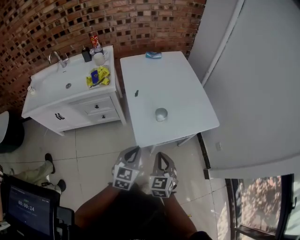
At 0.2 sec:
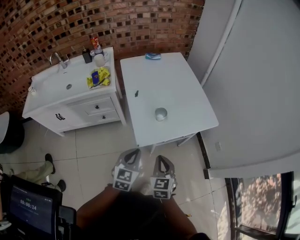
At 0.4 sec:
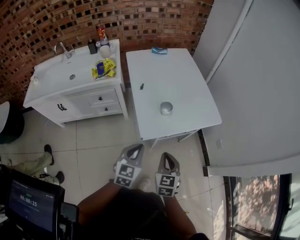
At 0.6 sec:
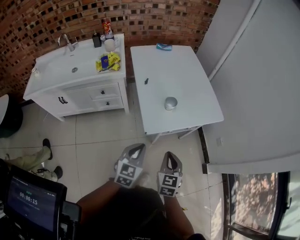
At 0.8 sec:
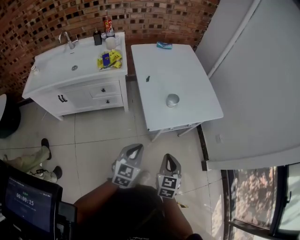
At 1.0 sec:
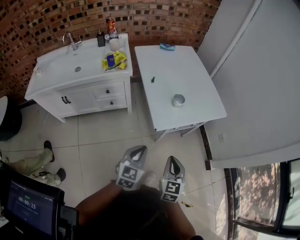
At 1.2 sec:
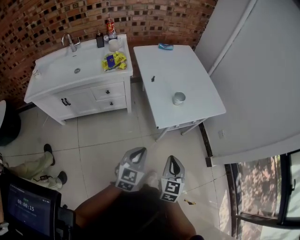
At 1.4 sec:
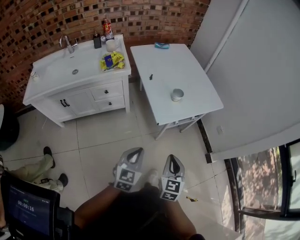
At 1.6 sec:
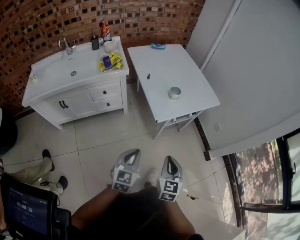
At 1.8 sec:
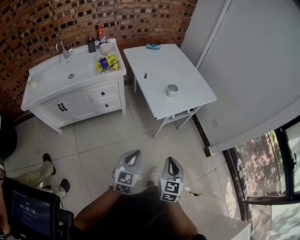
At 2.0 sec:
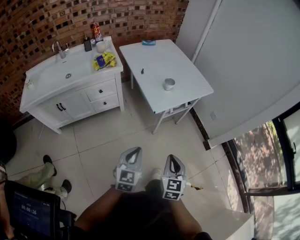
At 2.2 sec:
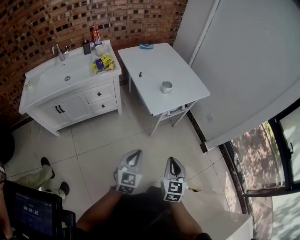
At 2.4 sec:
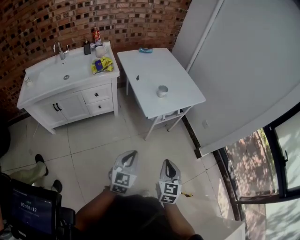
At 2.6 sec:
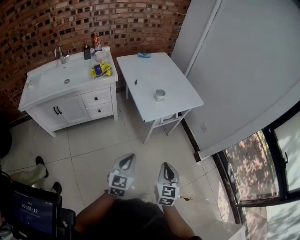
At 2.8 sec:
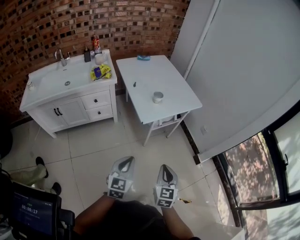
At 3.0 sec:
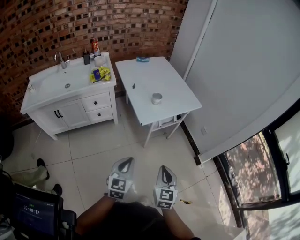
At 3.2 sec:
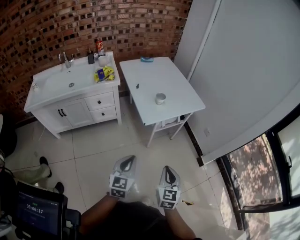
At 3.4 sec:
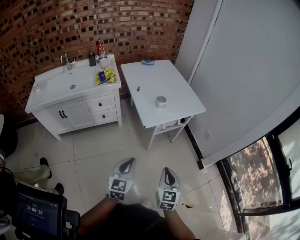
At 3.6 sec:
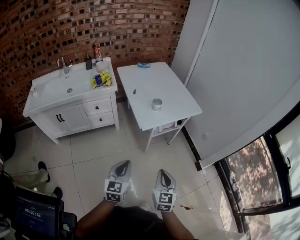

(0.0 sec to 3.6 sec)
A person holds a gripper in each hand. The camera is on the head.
0.0 sec - 1.8 sec: The left gripper goes some 25 cm backward and to the left. Meanwhile the right gripper travels backward by some 25 cm, and changes its angle by approximately 20 degrees.
1.8 sec - 3.6 sec: The left gripper ends up about 5 cm from where it was, while the right gripper goes some 5 cm to the right.

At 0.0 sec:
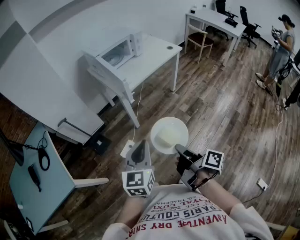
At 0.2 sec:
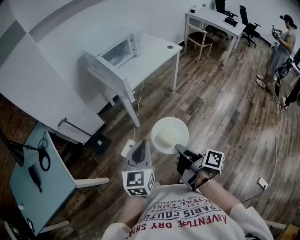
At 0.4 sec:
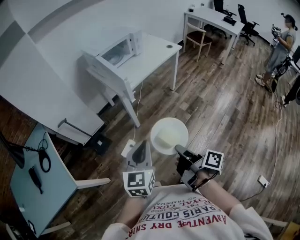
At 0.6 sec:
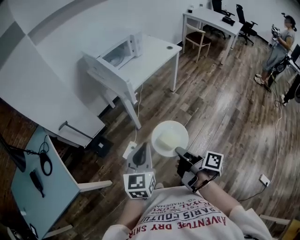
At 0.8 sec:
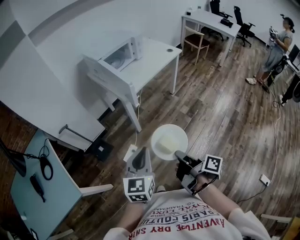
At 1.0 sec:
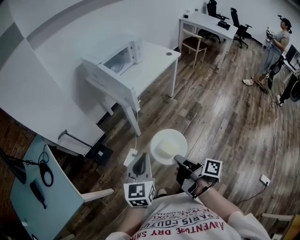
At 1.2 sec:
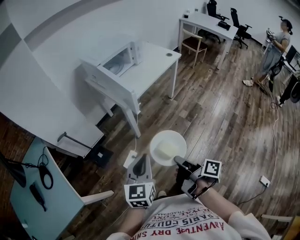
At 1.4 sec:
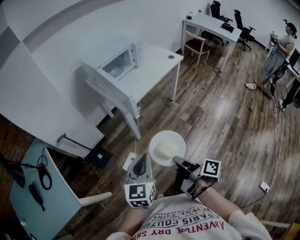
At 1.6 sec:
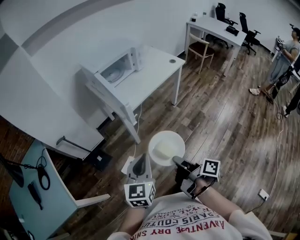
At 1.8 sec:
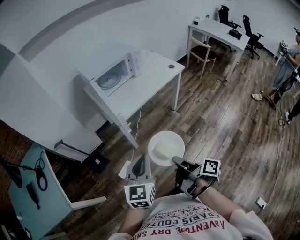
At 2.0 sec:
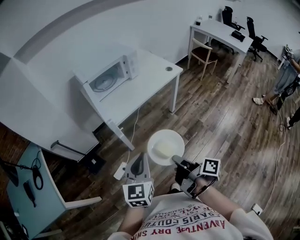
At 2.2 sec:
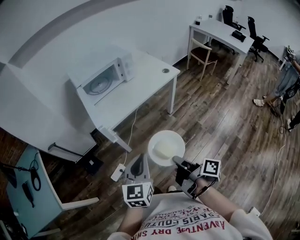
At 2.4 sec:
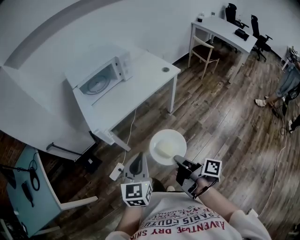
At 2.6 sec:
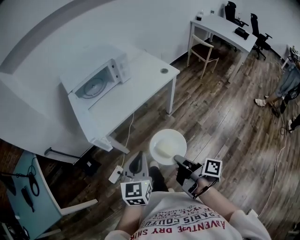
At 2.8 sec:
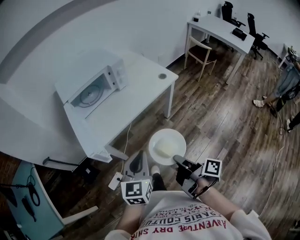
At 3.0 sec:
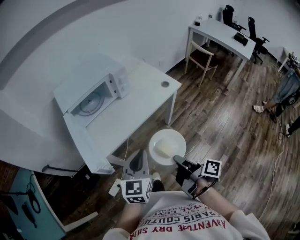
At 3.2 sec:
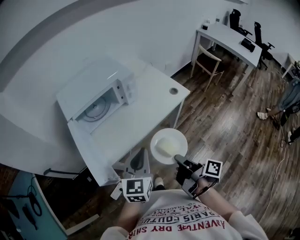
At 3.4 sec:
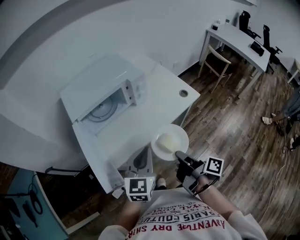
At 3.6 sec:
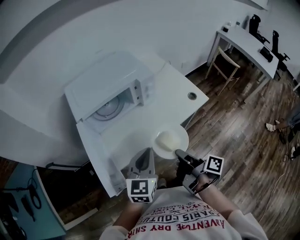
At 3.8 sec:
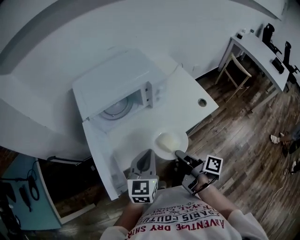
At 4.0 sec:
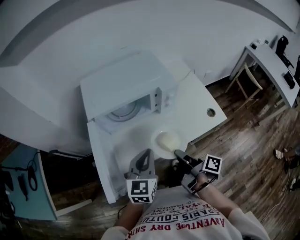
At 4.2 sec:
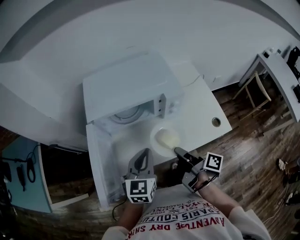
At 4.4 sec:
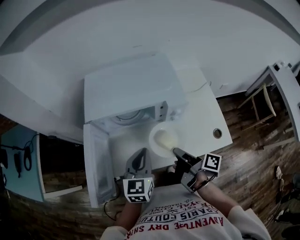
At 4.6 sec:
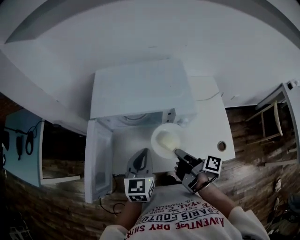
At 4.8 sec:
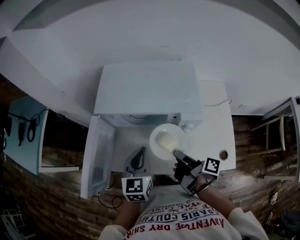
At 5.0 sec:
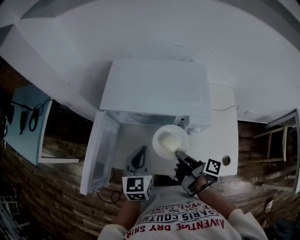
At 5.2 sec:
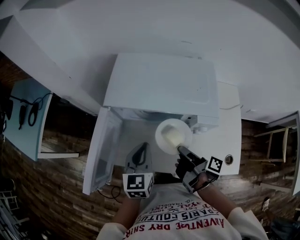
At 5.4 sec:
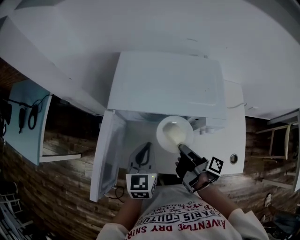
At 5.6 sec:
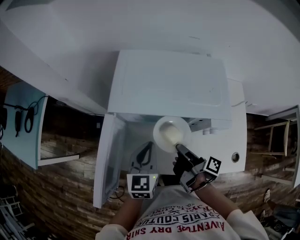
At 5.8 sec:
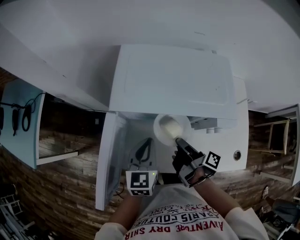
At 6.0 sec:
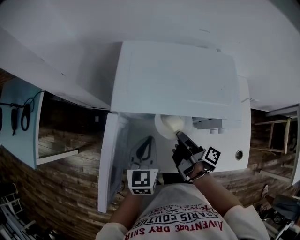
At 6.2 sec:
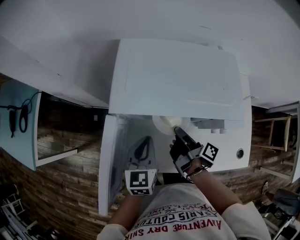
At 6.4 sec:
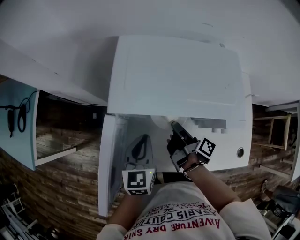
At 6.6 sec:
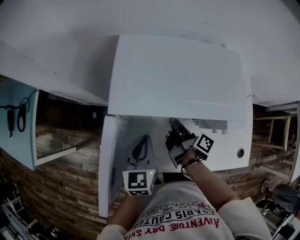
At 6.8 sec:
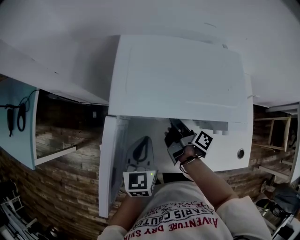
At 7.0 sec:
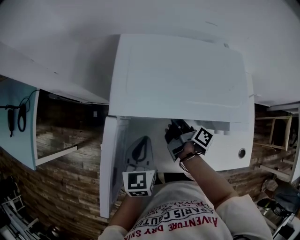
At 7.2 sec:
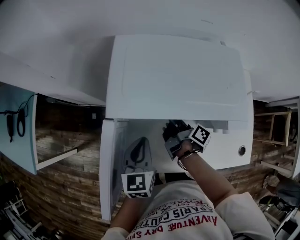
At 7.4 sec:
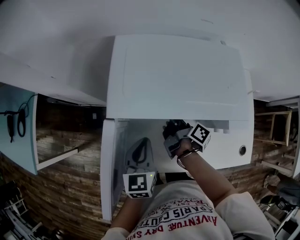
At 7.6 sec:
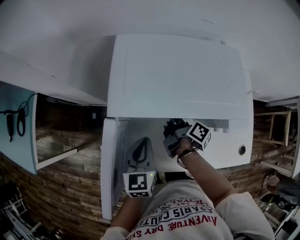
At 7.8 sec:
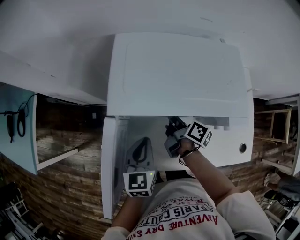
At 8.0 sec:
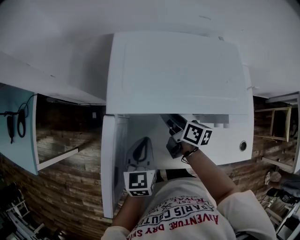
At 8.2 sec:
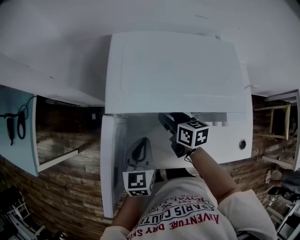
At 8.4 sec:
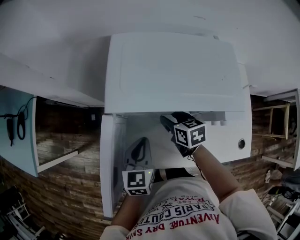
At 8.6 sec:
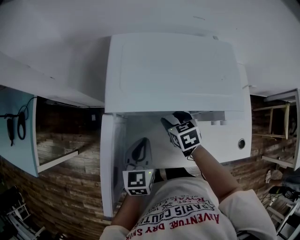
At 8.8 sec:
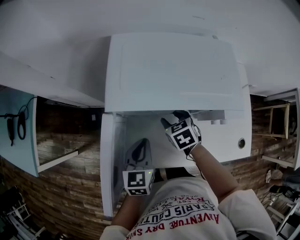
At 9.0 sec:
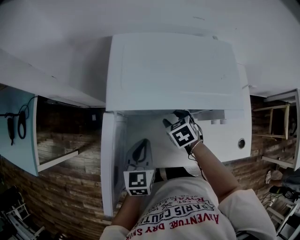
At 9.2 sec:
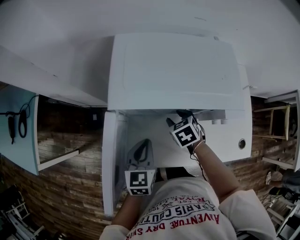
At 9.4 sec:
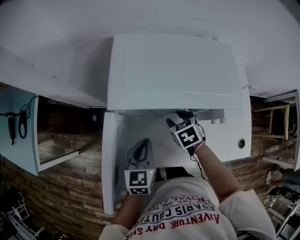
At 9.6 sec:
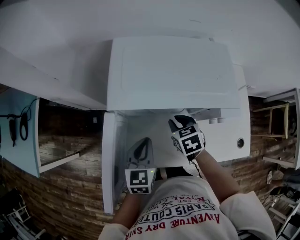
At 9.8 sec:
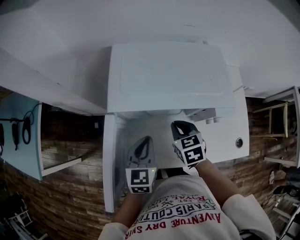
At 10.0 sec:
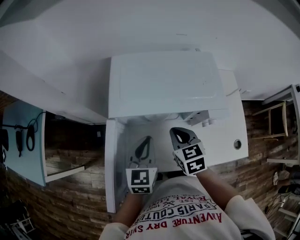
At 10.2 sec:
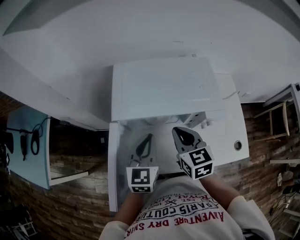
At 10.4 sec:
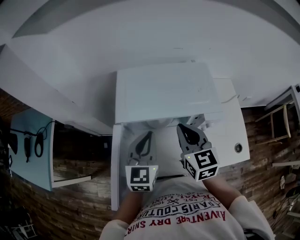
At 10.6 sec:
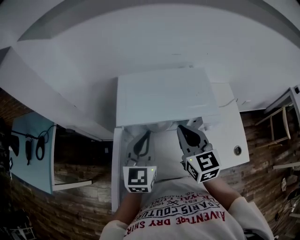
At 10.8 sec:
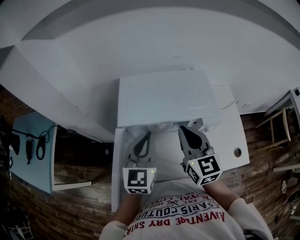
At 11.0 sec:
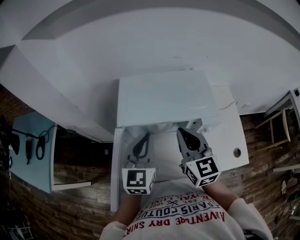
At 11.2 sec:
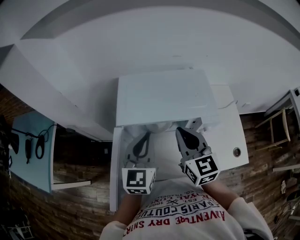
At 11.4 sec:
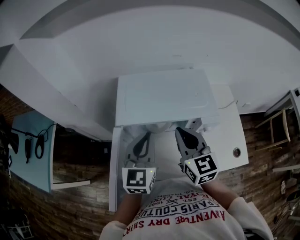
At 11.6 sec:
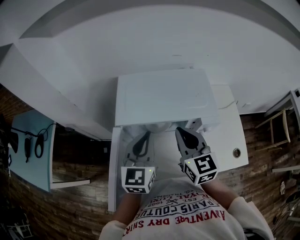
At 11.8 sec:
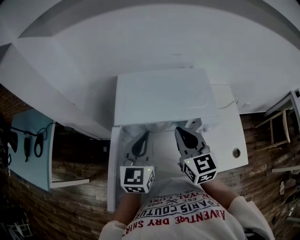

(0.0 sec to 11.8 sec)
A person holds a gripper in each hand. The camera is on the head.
0.0 sec - 1.4 sec: The left gripper moves approximately 10 cm.
1.4 sec - 3.0 sec: The left gripper ends up some 40 cm from where it was.
3.0 sec - 4.4 sec: The left gripper changes place by approximately 30 cm, and rotates approximately 30 degrees.
4.4 sec - 6.0 sec: The left gripper ends up about 15 cm from where it was.
8.8 sec - 10.4 sec: The left gripper heads upward, covering about 15 cm, and turns by roughly 20 degrees.

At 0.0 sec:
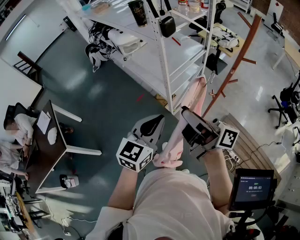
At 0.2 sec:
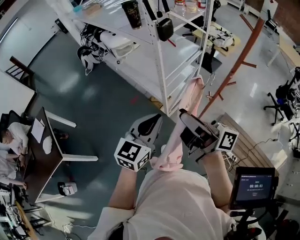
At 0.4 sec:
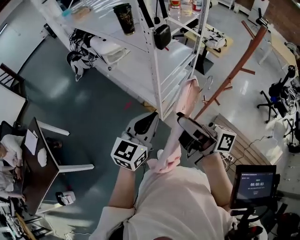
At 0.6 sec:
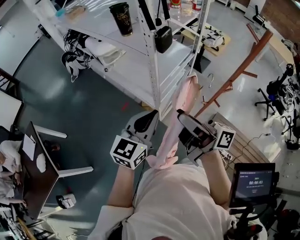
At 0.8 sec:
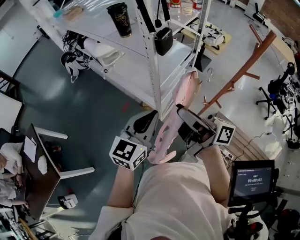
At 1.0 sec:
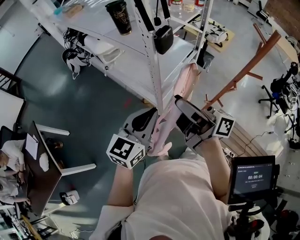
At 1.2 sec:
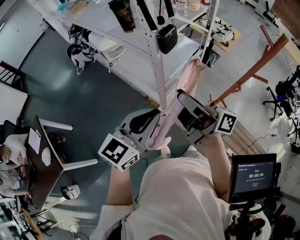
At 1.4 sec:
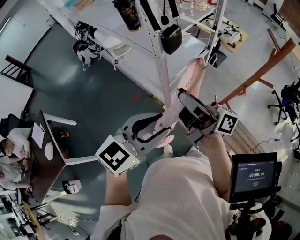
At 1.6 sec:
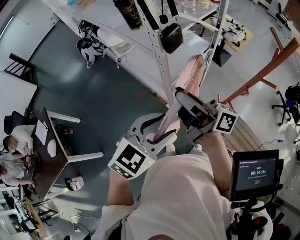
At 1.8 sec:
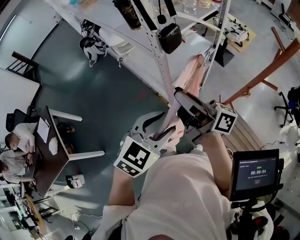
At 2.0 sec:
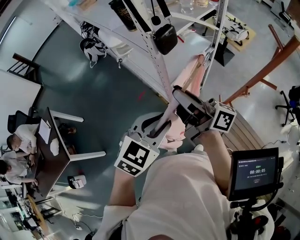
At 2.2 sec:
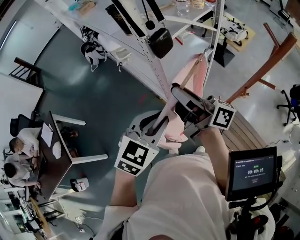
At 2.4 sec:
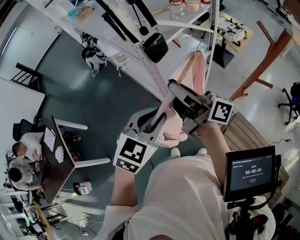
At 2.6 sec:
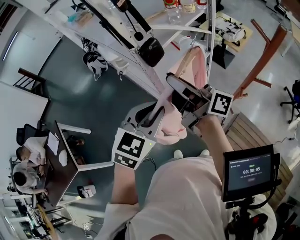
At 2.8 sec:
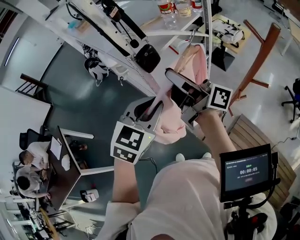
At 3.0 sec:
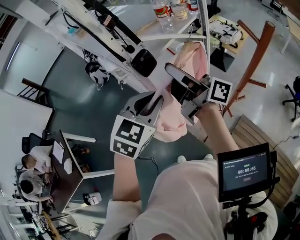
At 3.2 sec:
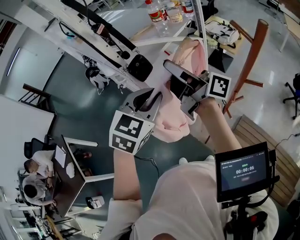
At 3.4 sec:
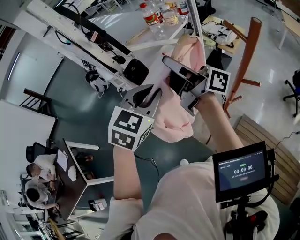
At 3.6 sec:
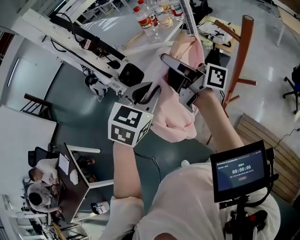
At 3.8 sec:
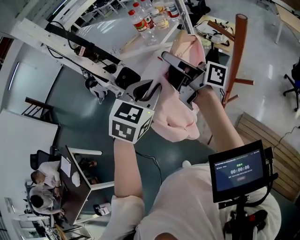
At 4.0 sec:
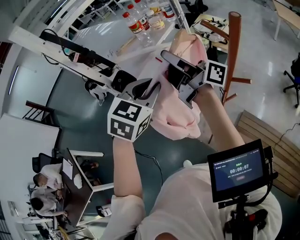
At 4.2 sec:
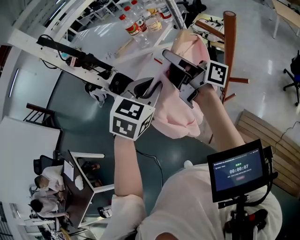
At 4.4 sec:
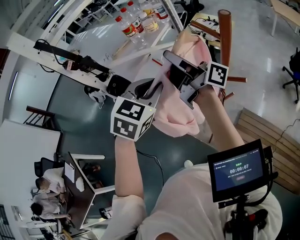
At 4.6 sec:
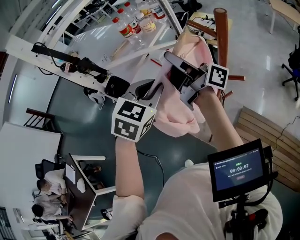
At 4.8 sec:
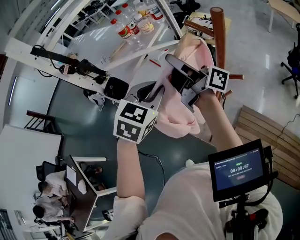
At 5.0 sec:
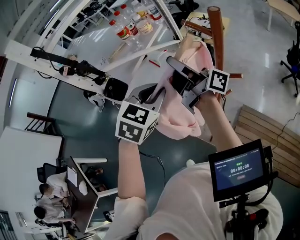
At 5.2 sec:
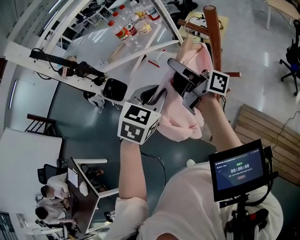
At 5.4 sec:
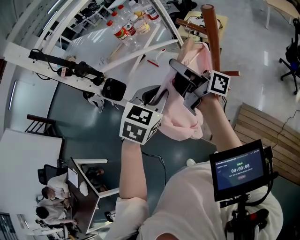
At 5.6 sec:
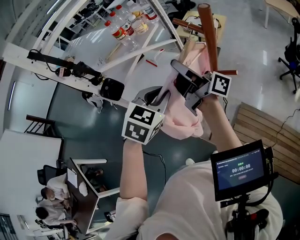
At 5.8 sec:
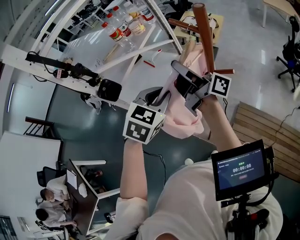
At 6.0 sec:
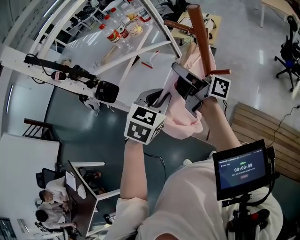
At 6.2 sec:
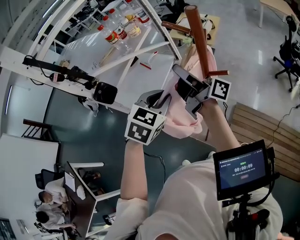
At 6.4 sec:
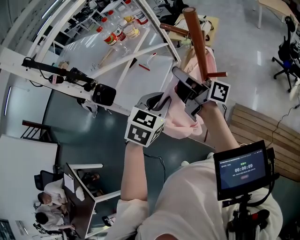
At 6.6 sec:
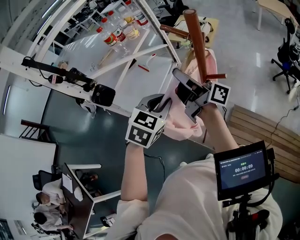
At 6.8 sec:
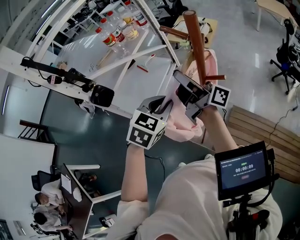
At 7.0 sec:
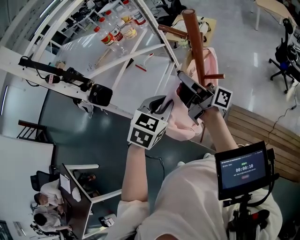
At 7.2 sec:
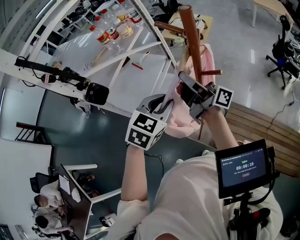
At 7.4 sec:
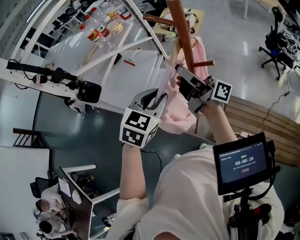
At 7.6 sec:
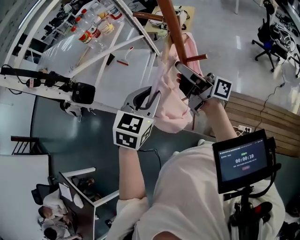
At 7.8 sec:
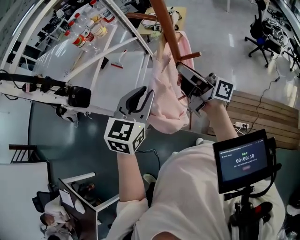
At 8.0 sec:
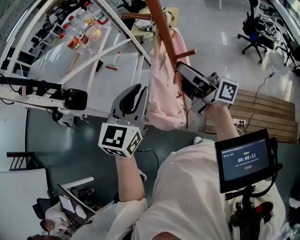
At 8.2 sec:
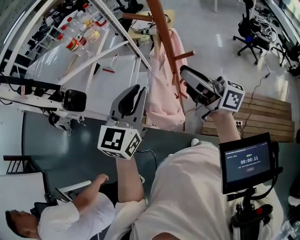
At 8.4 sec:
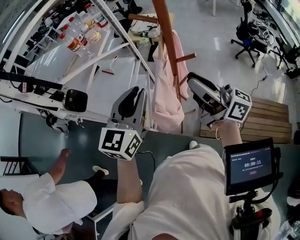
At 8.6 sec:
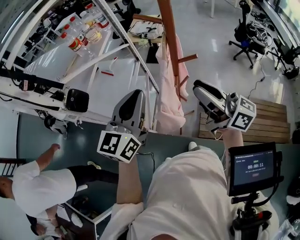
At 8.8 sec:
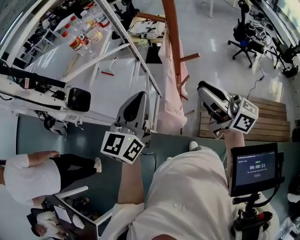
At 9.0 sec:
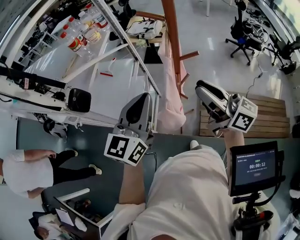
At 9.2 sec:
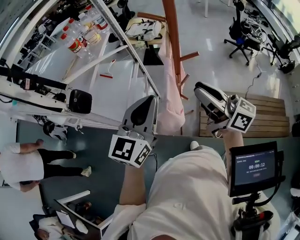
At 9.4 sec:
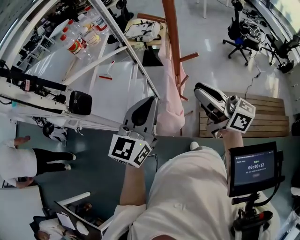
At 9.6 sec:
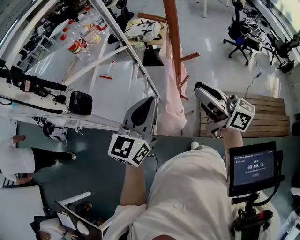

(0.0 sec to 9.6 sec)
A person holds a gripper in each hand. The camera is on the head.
0.0 sec - 1.6 sec: The left gripper is displaced forward by about 15 cm, turns by about 30 degrees, and opens up. Meanwhile the right gripper moves forward, about 25 cm.
1.6 sec - 3.2 sec: The left gripper travels forward, to the right and upward by approximately 20 cm, and closes. Meanwhile the right gripper heads to the right, forward and upward, covering some 20 cm.
3.2 sec - 4.8 sec: Both grippers move to the right, roughly 10 cm.
4.8 sec - 6.4 sec: The left gripper moves downward, some 5 cm. Meanwhile the right gripper heads downward and to the right, covering approximately 10 cm.
6.4 sec - 8.0 sec: The left gripper is displaced upward by some 5 cm, and changes its angle by roughly 30 degrees; the right gripper travels backward and to the right by about 15 cm.
8.0 sec - 9.6 sec: The right gripper moves backward, about 10 cm, and rotates some 30 degrees.
